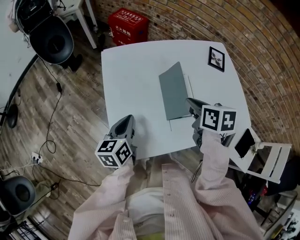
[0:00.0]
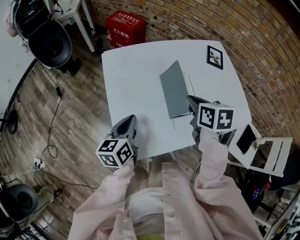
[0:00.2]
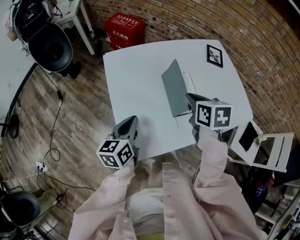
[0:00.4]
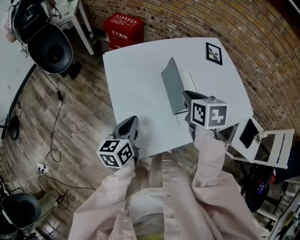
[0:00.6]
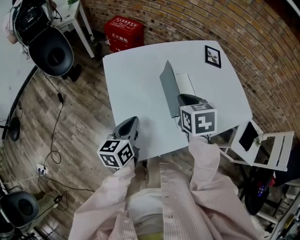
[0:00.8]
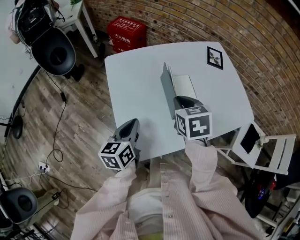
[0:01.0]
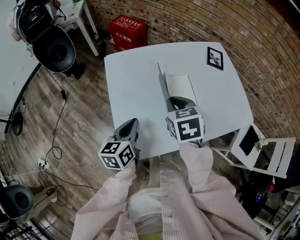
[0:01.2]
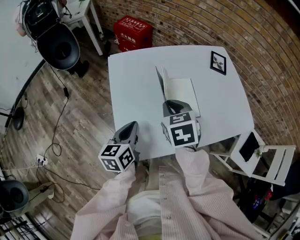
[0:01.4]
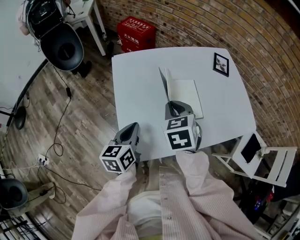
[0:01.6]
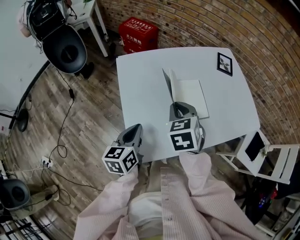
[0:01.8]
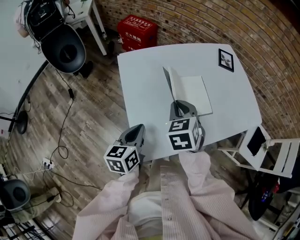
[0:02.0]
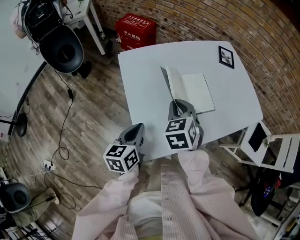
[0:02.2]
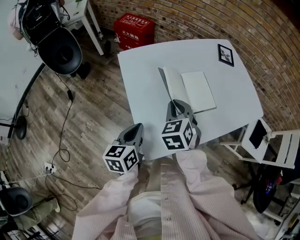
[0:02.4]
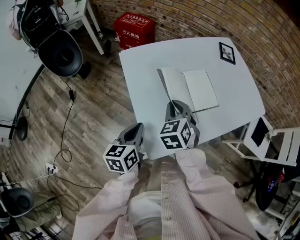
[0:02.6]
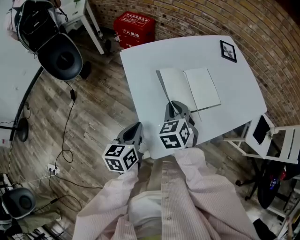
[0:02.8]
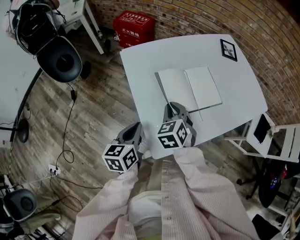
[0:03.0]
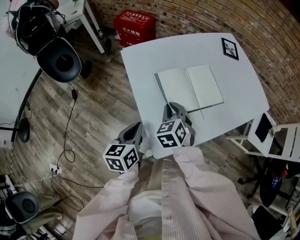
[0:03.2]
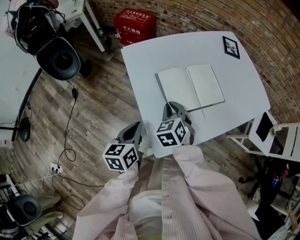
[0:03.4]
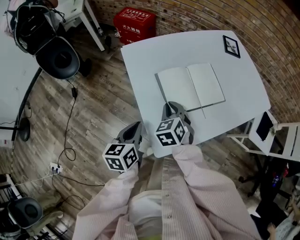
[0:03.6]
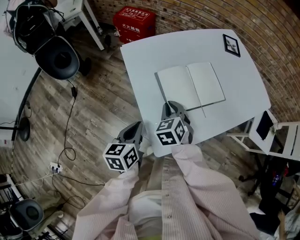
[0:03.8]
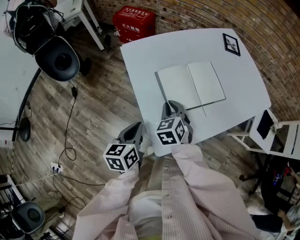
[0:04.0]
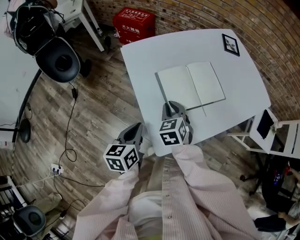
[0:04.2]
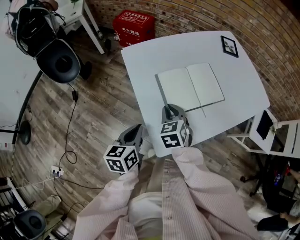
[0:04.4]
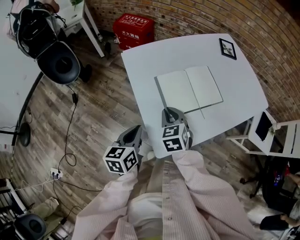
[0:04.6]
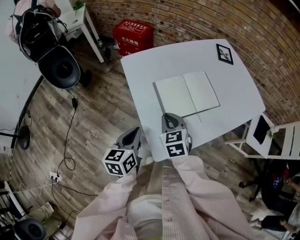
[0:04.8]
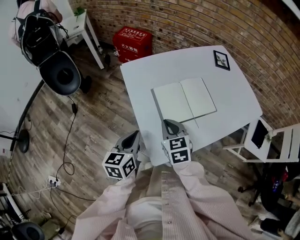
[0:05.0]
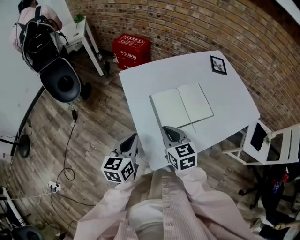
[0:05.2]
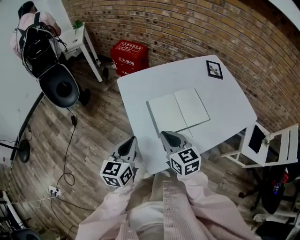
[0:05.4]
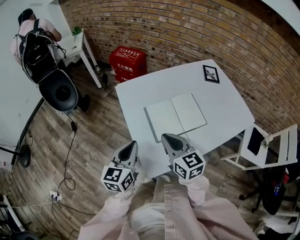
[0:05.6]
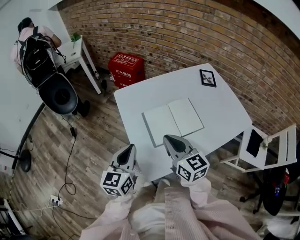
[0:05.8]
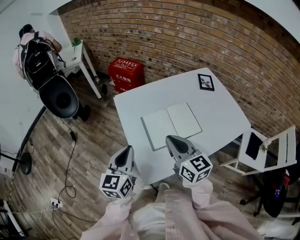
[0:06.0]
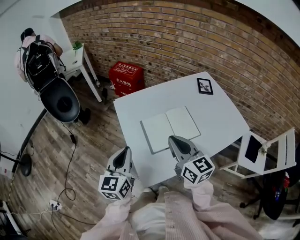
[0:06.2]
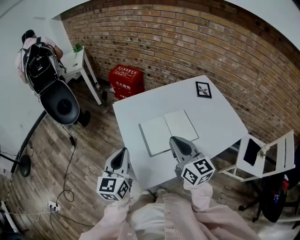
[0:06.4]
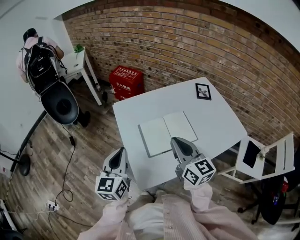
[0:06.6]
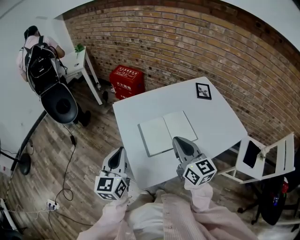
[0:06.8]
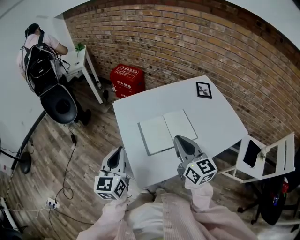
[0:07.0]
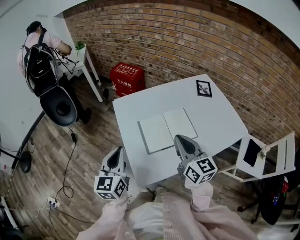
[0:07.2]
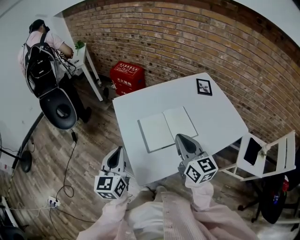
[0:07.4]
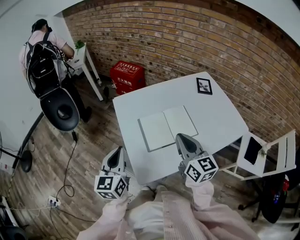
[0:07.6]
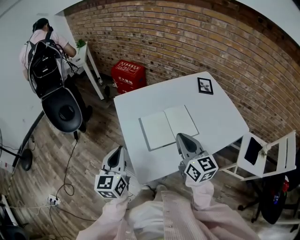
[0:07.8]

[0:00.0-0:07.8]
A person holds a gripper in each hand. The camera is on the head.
0:00.0 to 0:01.6: The right gripper shifts about 10 cm to the left, and turns by roughly 30 degrees.
0:01.6 to 0:03.2: The left gripper moves to the left, some 10 cm. Meanwhile the right gripper travels downward and to the left by roughly 15 cm.
0:03.2 to 0:04.6: There are only small adjustments of the grippers.
0:04.6 to 0:06.2: The right gripper shifts some 20 cm upward and to the right, and angles its fingers upward, by roughly 40 degrees, while the left gripper moves upward, roughly 15 cm, and changes its angle by approximately 30 degrees.
0:06.2 to 0:07.8: The right gripper moves to the right, roughly 5 cm.

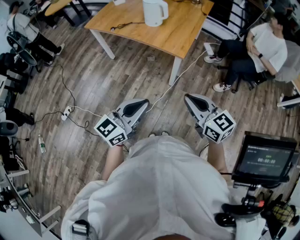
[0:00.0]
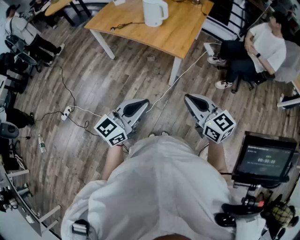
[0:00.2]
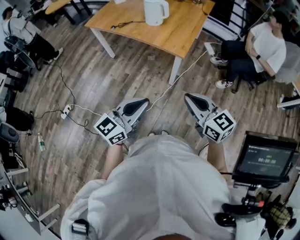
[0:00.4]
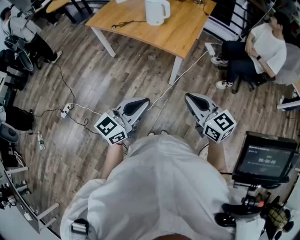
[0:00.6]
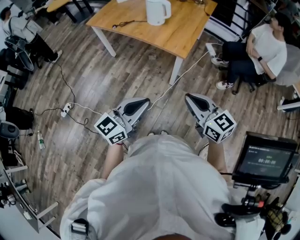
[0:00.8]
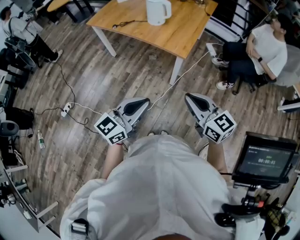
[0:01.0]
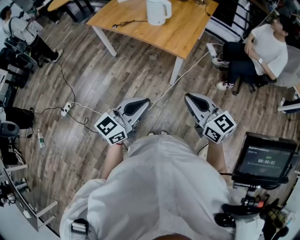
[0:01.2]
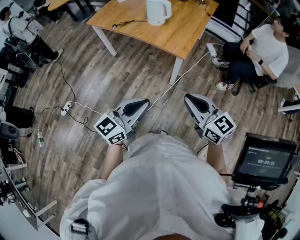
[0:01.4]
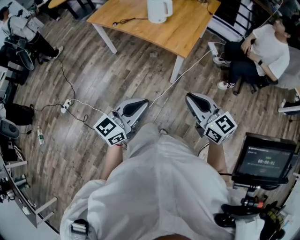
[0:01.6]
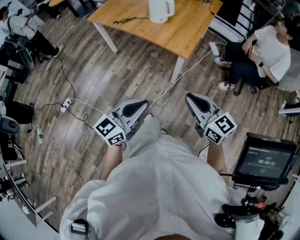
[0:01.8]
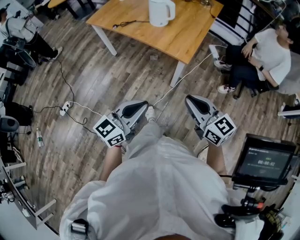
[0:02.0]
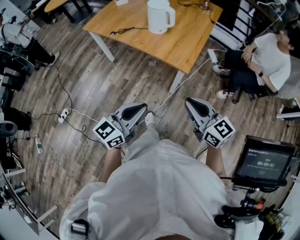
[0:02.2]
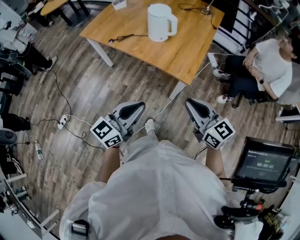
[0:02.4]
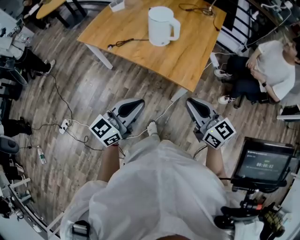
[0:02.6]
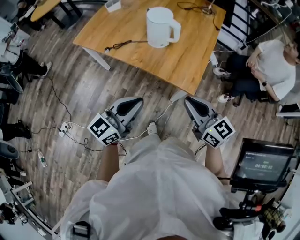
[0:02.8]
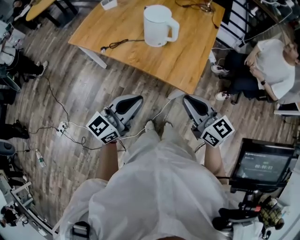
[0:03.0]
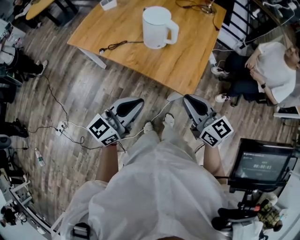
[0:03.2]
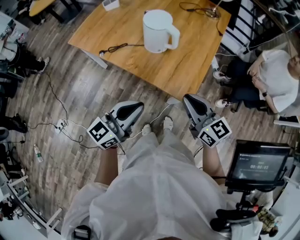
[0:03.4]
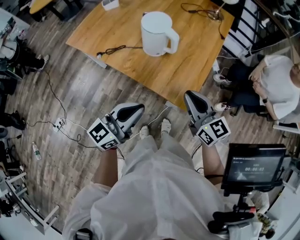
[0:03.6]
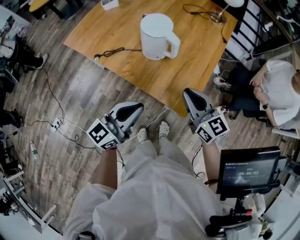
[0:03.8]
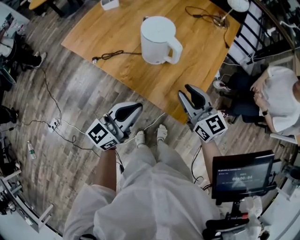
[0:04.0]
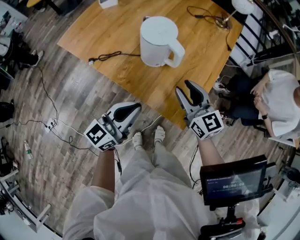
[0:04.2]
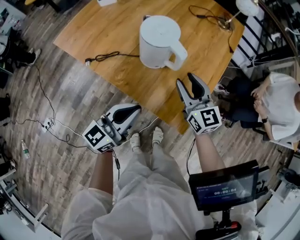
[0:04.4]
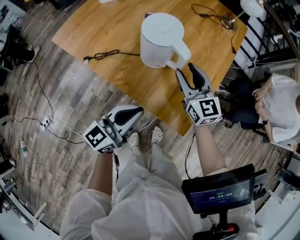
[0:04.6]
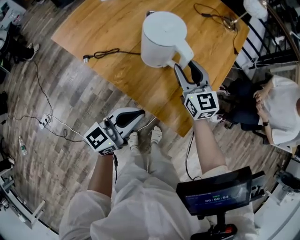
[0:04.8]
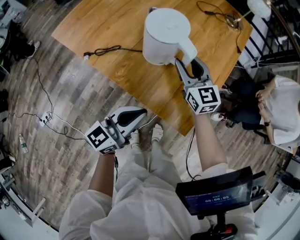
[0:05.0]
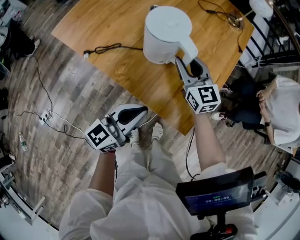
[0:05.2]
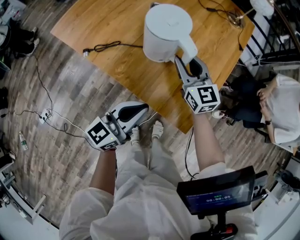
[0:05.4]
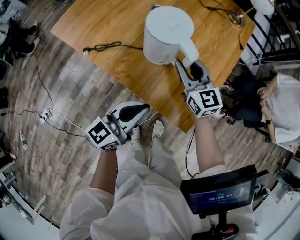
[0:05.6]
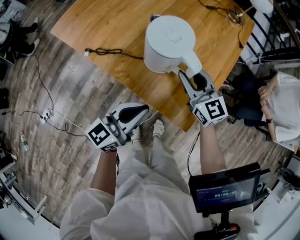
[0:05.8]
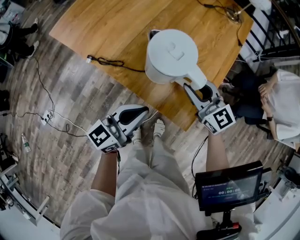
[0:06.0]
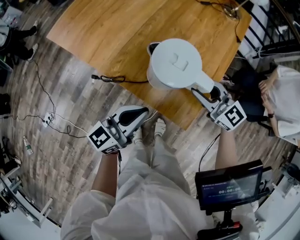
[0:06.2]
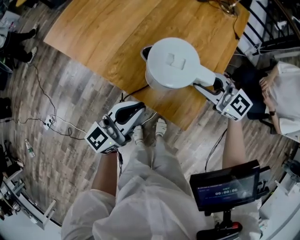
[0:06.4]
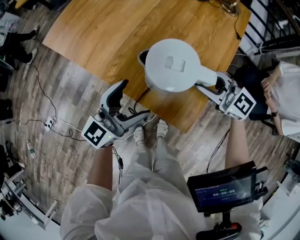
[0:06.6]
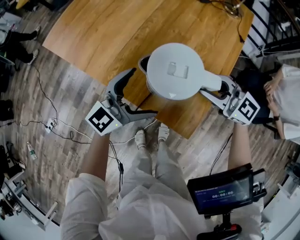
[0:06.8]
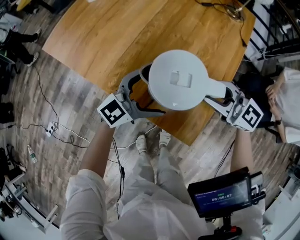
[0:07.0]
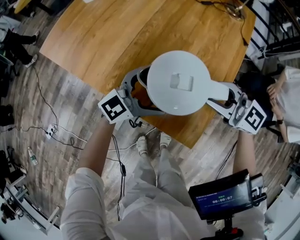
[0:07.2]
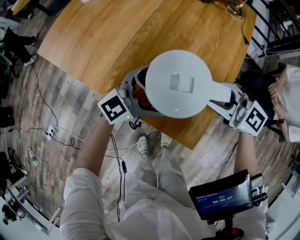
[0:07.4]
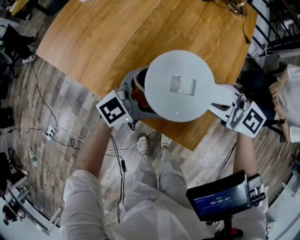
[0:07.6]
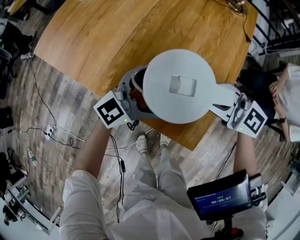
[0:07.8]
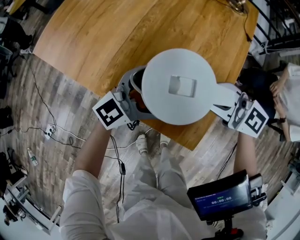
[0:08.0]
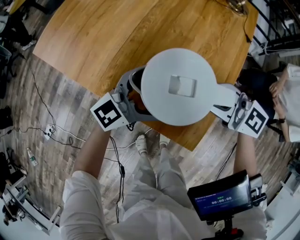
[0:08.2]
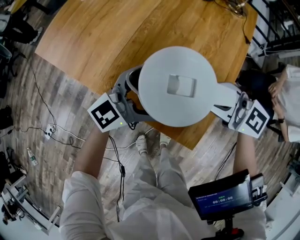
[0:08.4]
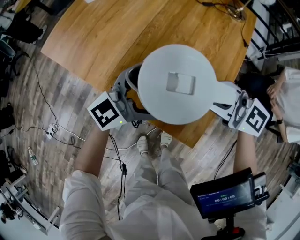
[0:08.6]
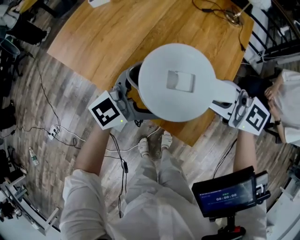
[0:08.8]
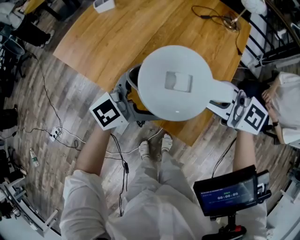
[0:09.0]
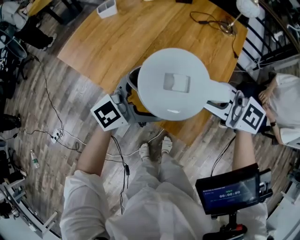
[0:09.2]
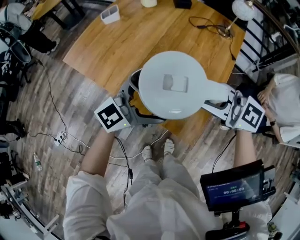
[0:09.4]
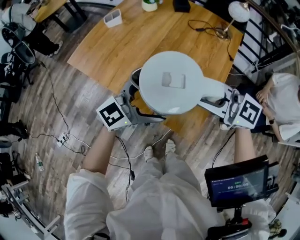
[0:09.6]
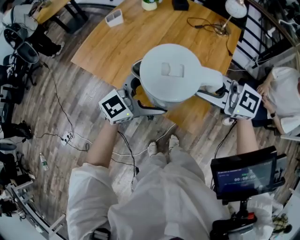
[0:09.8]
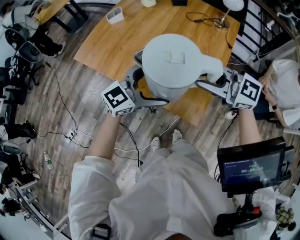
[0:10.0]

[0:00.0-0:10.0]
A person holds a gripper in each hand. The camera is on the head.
0:00.0 to 0:01.4: The grippers make only small movements.
0:01.4 to 0:02.8: Both grippers move forward, approximately 30 cm.
0:02.8 to 0:04.2: The left gripper is displaced forward and downward by roughly 20 cm. The right gripper is displaced forward by about 25 cm, and opens its fingers.
0:04.2 to 0:05.8: The left gripper travels downward by about 5 cm; the right gripper is displaced forward and downward by about 10 cm.
0:05.8 to 0:07.2: The left gripper shifts by about 15 cm, changes its angle by some 30 degrees, and opens its fingers, while the right gripper ends up roughly 5 cm from where it was, and rotates approximately 30 degrees.
0:07.2 to 0:08.6: The right gripper moves roughly 5 cm, while the left gripper moves upward, about 5 cm.
0:08.6 to 0:10.0: Both grippers move upward, about 15 cm.

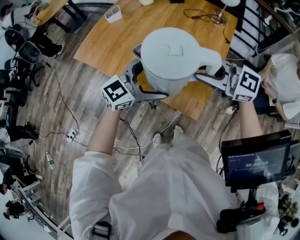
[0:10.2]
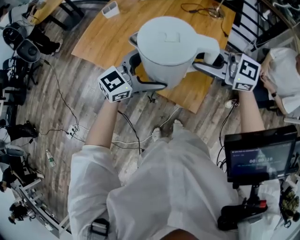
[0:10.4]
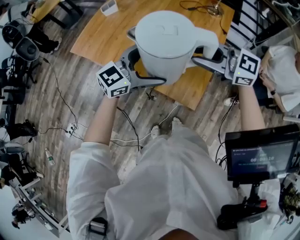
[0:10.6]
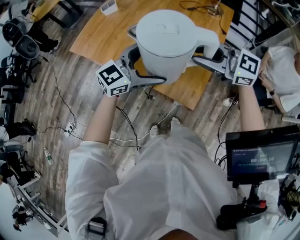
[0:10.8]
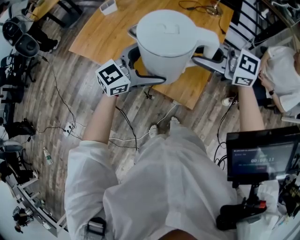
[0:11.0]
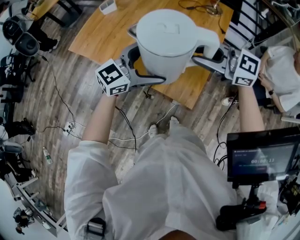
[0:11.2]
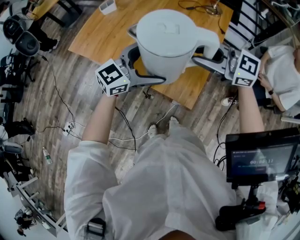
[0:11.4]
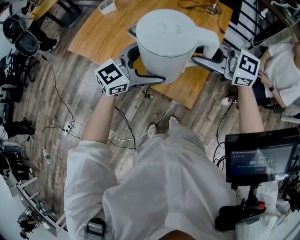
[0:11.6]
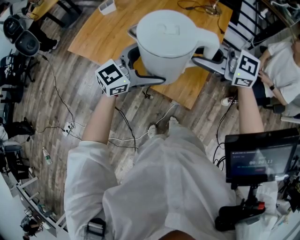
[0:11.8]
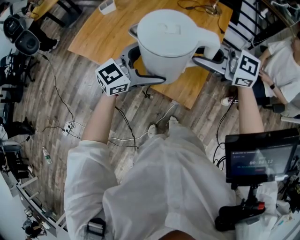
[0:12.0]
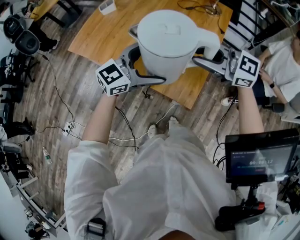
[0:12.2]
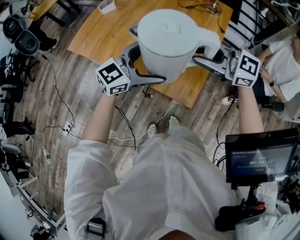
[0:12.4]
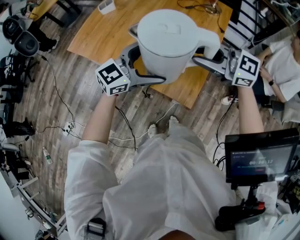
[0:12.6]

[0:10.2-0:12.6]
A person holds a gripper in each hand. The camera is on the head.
0:10.2 to 0:11.4: The grippers move only a little.
0:11.4 to 0:12.6: Both grippers stay put.

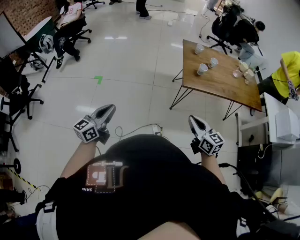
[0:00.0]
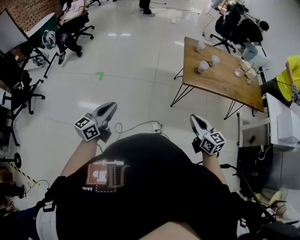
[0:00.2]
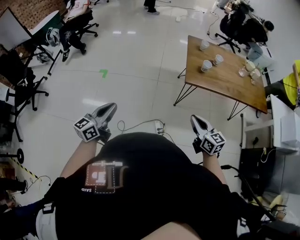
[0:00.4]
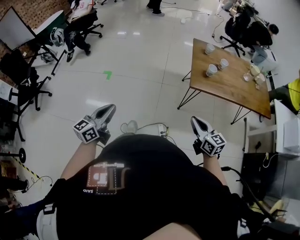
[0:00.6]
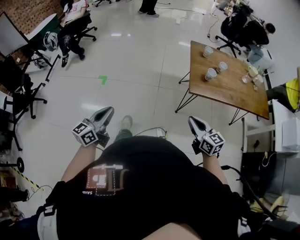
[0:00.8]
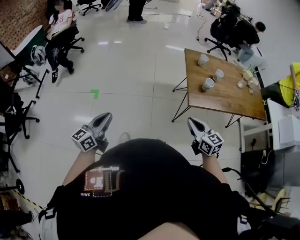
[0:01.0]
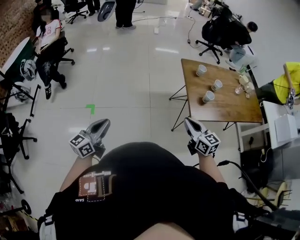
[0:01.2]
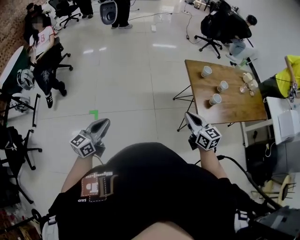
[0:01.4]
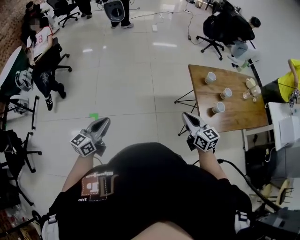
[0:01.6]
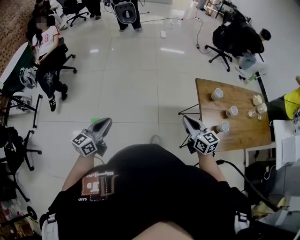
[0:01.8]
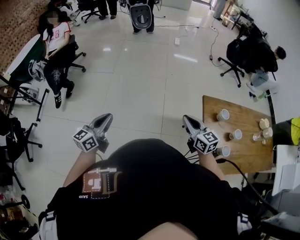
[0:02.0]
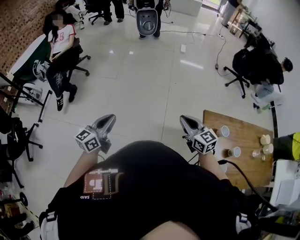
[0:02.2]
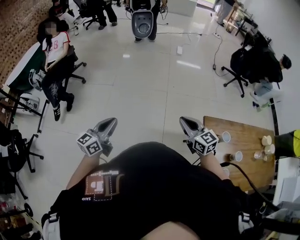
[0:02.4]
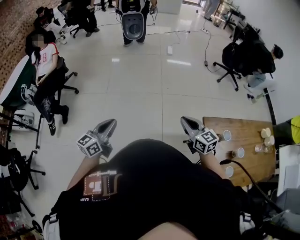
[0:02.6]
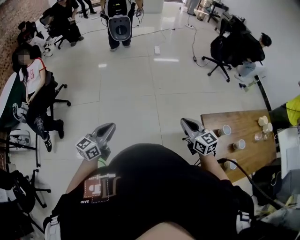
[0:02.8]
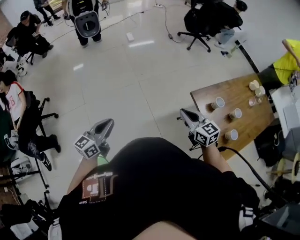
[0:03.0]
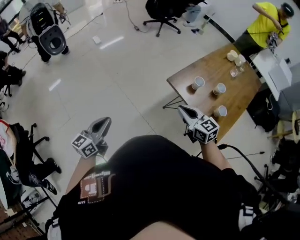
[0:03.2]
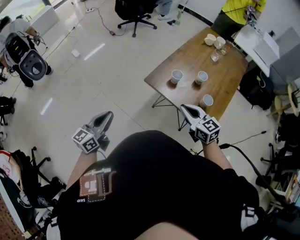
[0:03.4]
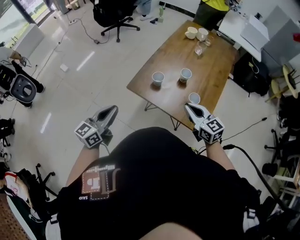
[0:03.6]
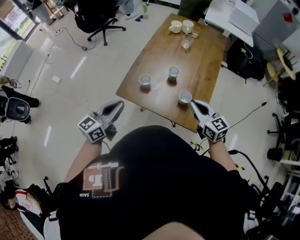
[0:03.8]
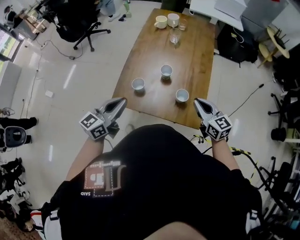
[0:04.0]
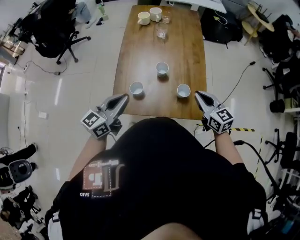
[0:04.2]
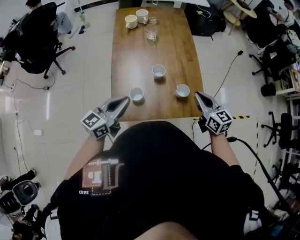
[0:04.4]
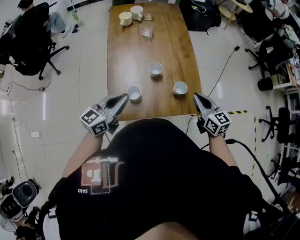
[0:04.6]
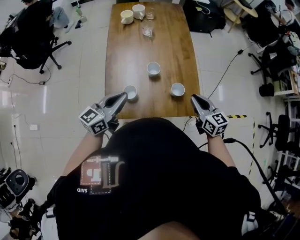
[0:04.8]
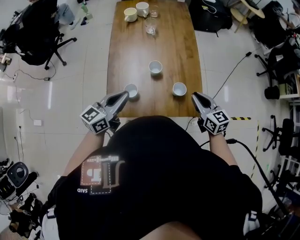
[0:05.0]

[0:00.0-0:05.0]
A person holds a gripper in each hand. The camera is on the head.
0:00.0 to 0:01.6: Both grippers are carried forward and to the left, about 40 cm.
0:01.6 to 0:03.4: The right gripper swivels roughly 40 degrees, while the left gripper moves roughly 50 cm, and rotates some 50 degrees.
0:03.4 to 0:05.0: The right gripper ends up some 25 cm from where it was, and swivels roughly 50 degrees. The left gripper shifts by roughly 40 cm, and changes its angle by roughly 50 degrees.
